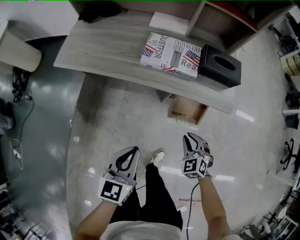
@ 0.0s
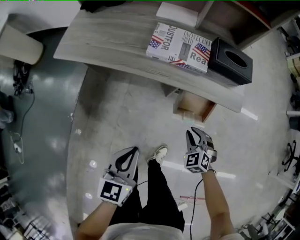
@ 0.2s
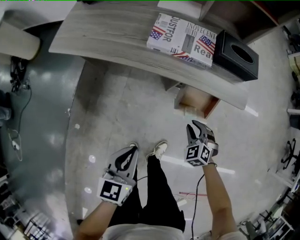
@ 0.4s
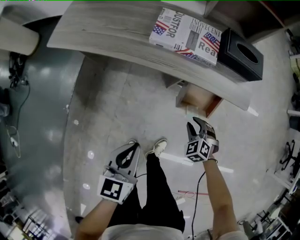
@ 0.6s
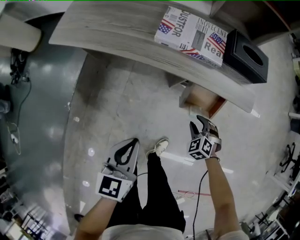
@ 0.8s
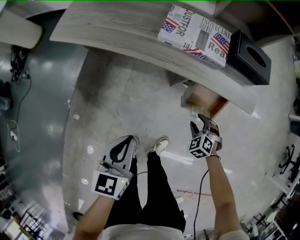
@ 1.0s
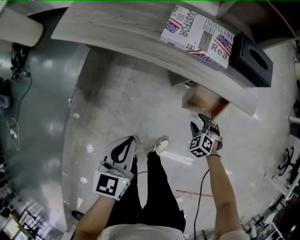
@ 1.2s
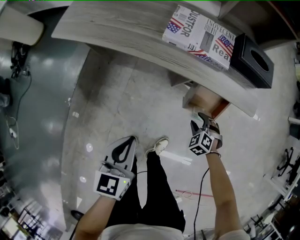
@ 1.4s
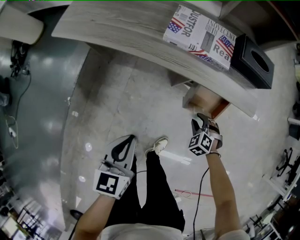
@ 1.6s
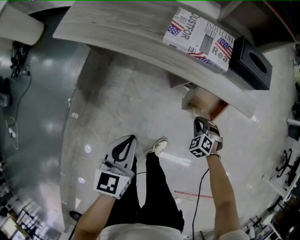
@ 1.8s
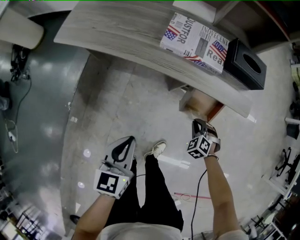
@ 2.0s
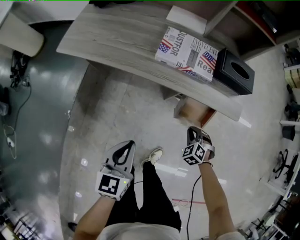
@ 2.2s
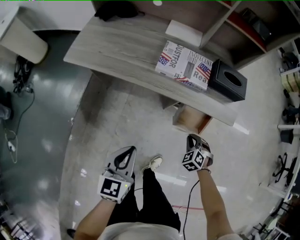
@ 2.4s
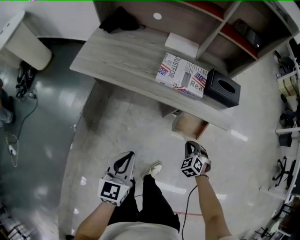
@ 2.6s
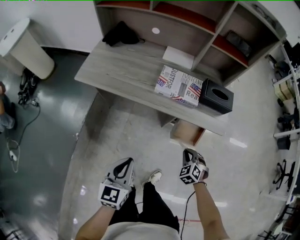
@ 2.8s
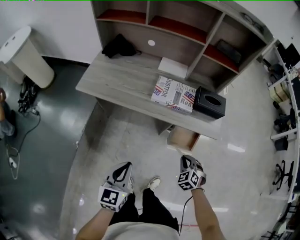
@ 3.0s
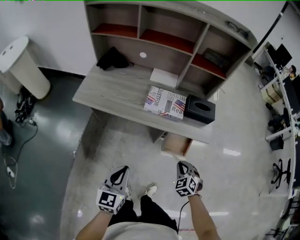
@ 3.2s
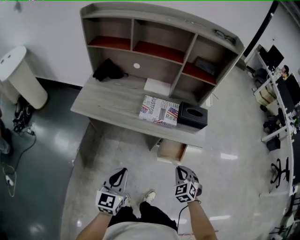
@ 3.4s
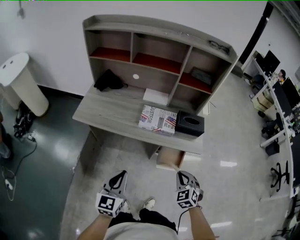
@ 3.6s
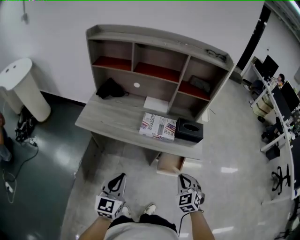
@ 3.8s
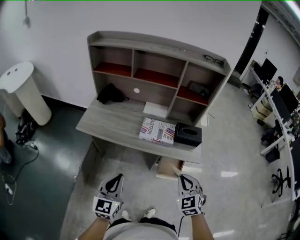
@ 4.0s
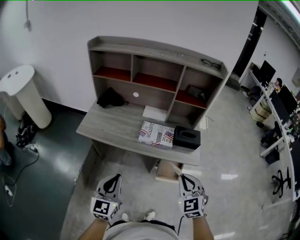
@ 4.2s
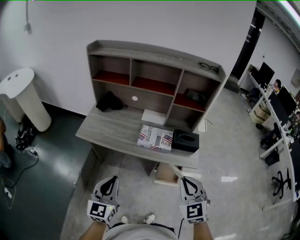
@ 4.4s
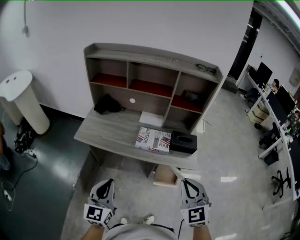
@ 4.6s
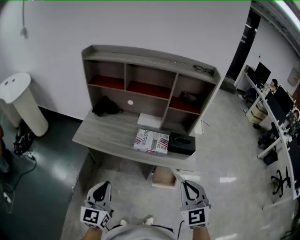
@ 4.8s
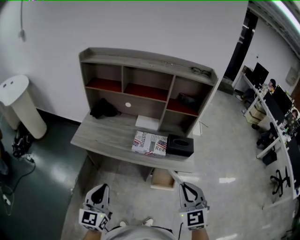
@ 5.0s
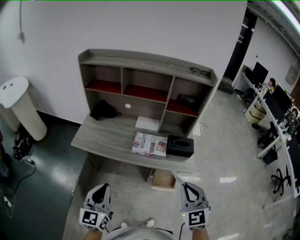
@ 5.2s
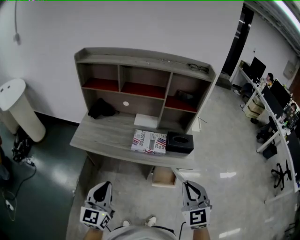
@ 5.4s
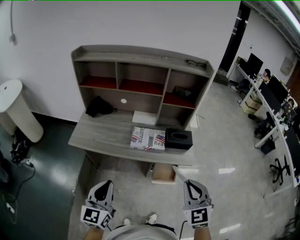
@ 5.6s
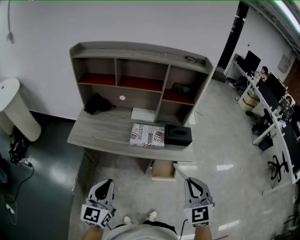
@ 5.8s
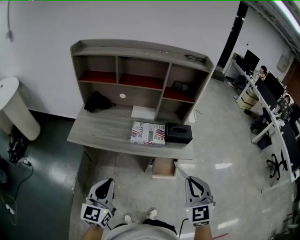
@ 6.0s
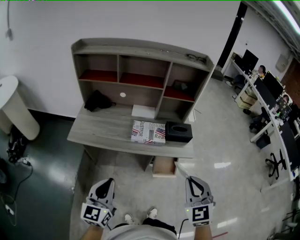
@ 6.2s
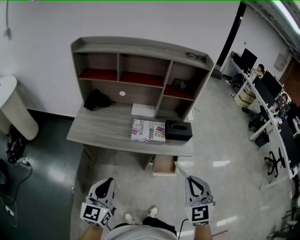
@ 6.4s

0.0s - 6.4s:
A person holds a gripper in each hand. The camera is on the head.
0.0s - 1.6s: The left gripper is displaced downward and to the left by roughly 10 cm. Meanwhile the right gripper travels downward by some 15 cm, and swivels some 20 degrees.
1.6s - 3.2s: The left gripper heads upward, covering approximately 15 cm; the right gripper is displaced upward by some 25 cm, changes its angle by about 30 degrees, and closes.
3.2s - 4.8s: The left gripper goes about 15 cm upward. The right gripper moves upward, about 30 cm, and tips its fingers upward by roughly 30 degrees.
4.8s - 6.4s: The grippers move only a little.

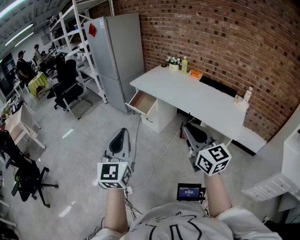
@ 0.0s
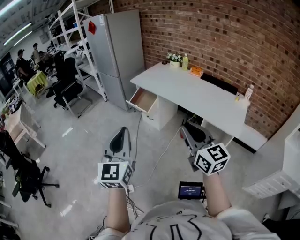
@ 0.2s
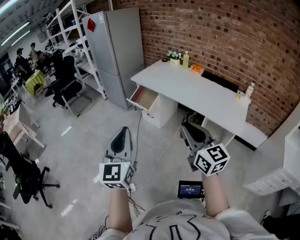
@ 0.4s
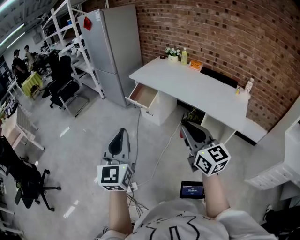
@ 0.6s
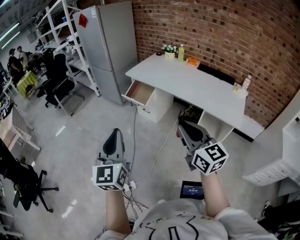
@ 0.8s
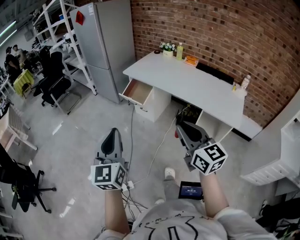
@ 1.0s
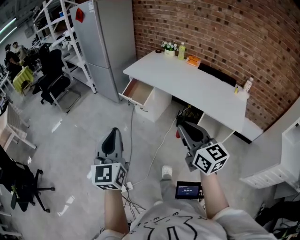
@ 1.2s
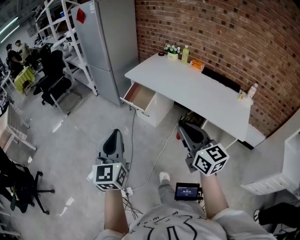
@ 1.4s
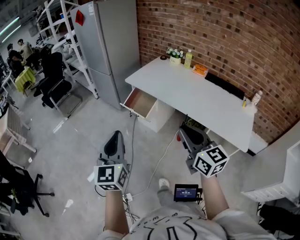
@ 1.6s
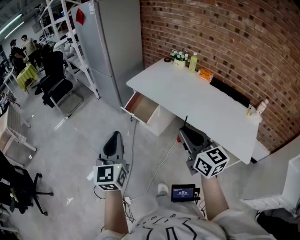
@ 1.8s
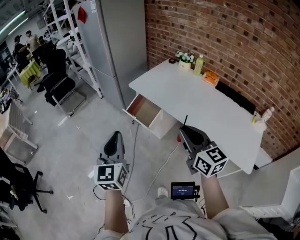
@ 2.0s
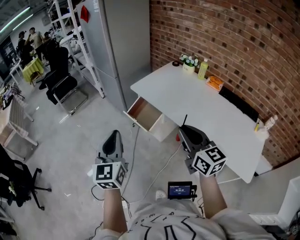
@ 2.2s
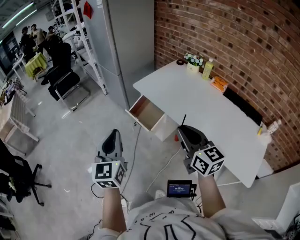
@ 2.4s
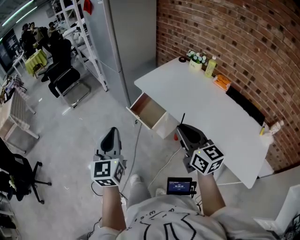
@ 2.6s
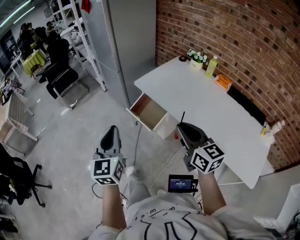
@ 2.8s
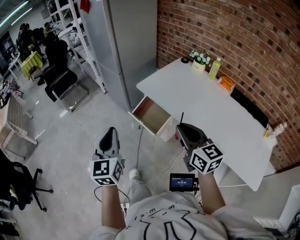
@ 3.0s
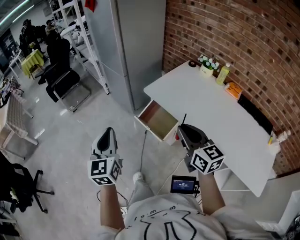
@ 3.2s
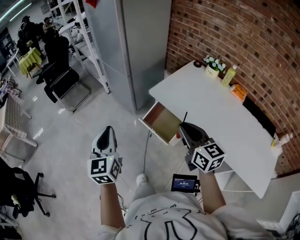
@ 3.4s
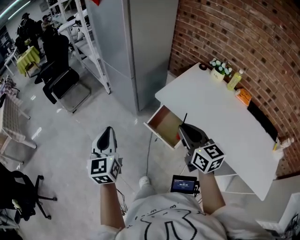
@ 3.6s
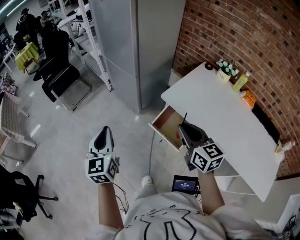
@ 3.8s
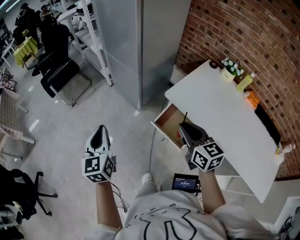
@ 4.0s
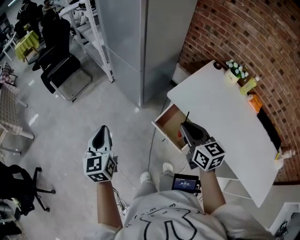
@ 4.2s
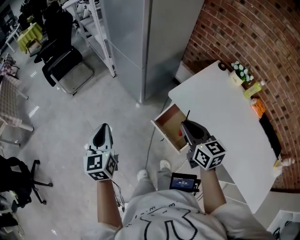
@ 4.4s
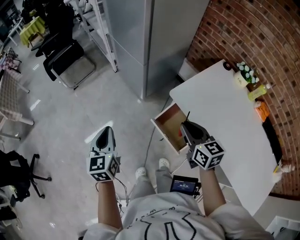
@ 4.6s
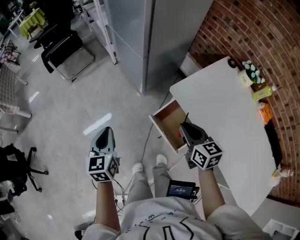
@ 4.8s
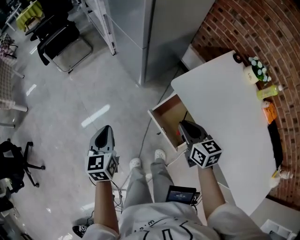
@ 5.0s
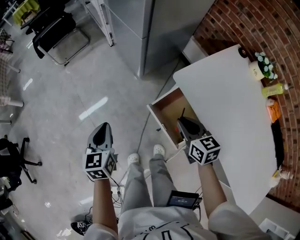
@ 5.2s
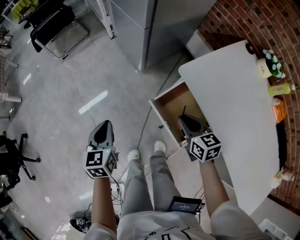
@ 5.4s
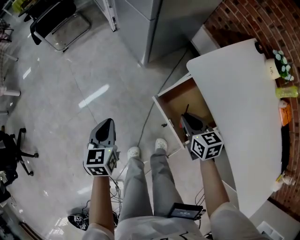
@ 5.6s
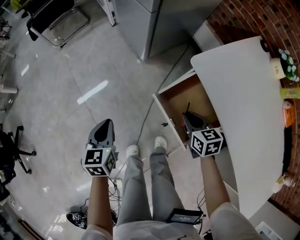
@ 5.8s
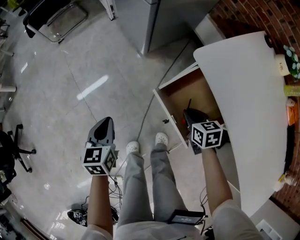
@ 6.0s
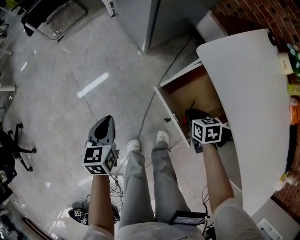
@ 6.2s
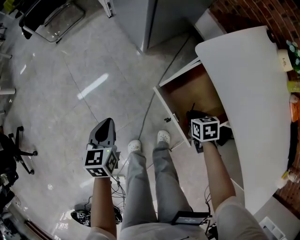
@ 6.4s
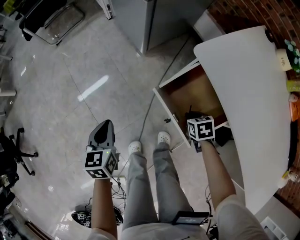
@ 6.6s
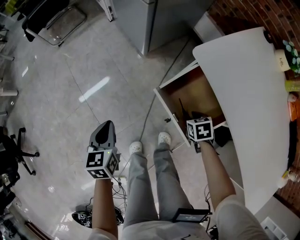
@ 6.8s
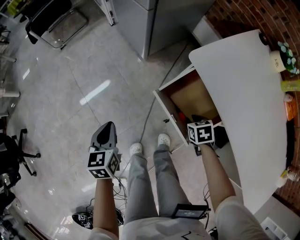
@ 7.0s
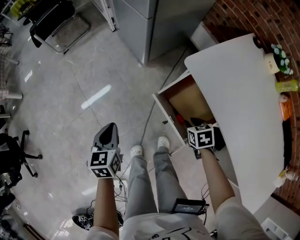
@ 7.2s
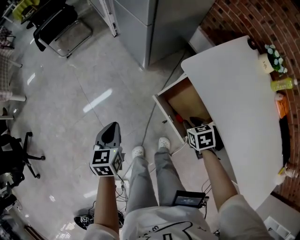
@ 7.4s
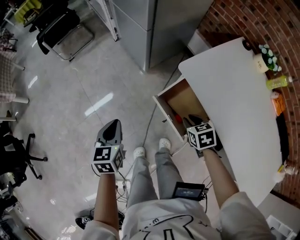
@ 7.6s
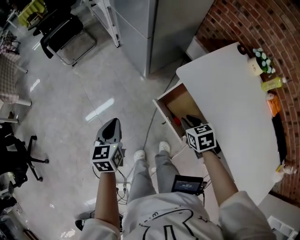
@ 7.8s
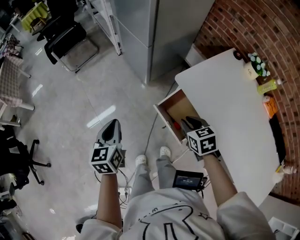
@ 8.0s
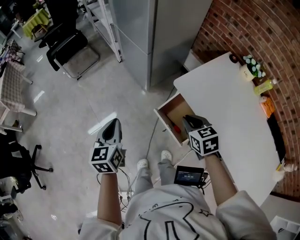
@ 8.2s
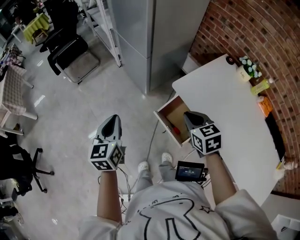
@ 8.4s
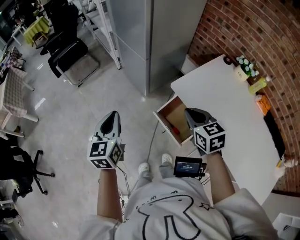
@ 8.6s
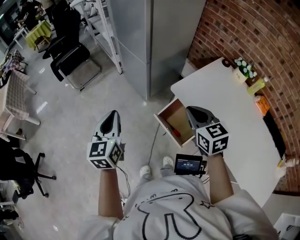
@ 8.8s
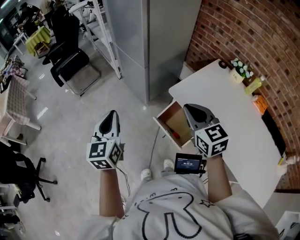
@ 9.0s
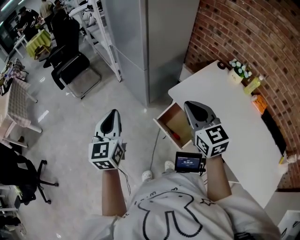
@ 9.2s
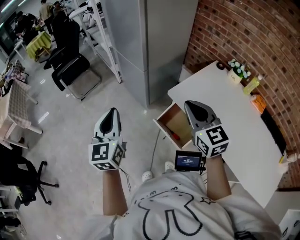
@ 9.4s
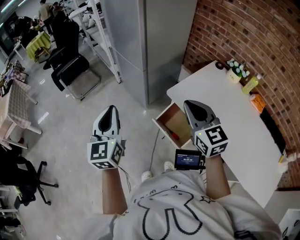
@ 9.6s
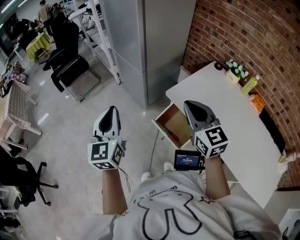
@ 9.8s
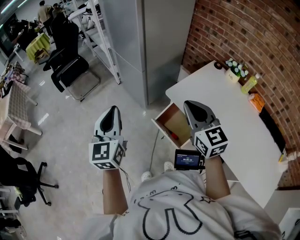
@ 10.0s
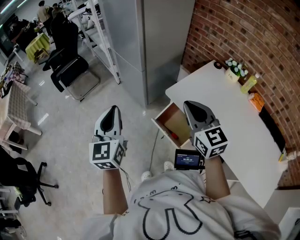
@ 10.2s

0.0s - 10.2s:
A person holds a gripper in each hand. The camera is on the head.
0.0s - 1.4s: The right gripper moves forward and to the left, approximately 15 cm; the left gripper travels forward, to the left and downward by about 15 cm.
1.4s - 3.0s: The grippers both shift forward by approximately 35 cm.
3.0s - 4.4s: The two grippers go roughly 30 cm forward and to the left.
4.4s - 5.8s: Both grippers move downward, roughly 30 cm. The right gripper turns by approximately 30 degrees. The left gripper changes its angle by approximately 20 degrees.
5.8s - 7.2s: The right gripper travels downward and back again, about 10 cm each way, and swivels about 20 degrees.
7.2s - 8.8s: Both grippers move upward, roughly 35 cm. The left gripper turns by about 30 degrees. Meanwhile the right gripper tilts its fingers some 40 degrees upward.
8.8s - 10.2s: The grippers both shift upward by approximately 10 cm.

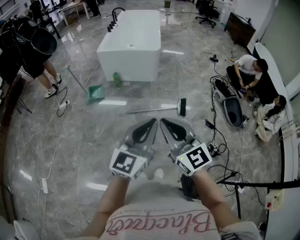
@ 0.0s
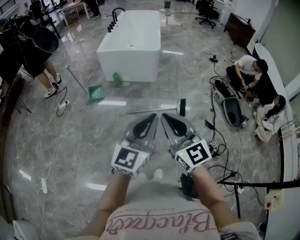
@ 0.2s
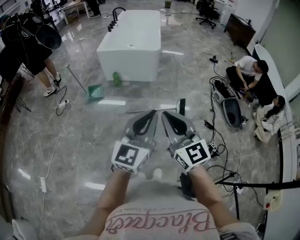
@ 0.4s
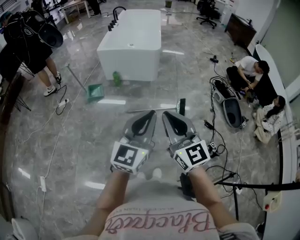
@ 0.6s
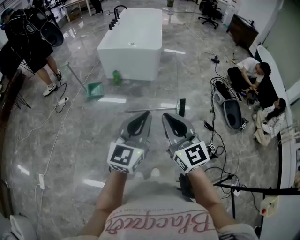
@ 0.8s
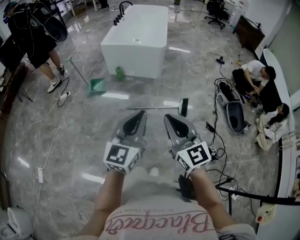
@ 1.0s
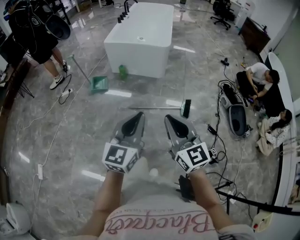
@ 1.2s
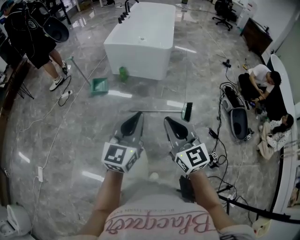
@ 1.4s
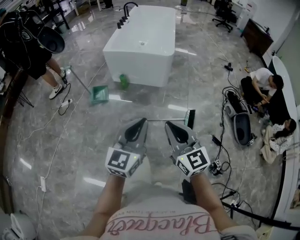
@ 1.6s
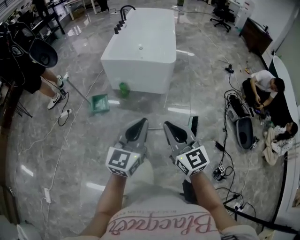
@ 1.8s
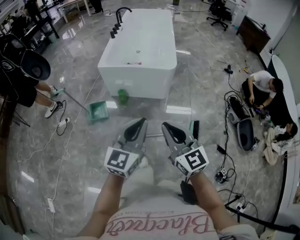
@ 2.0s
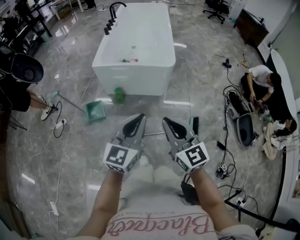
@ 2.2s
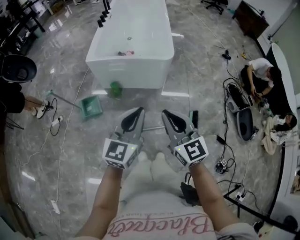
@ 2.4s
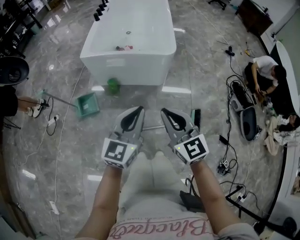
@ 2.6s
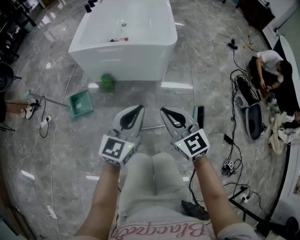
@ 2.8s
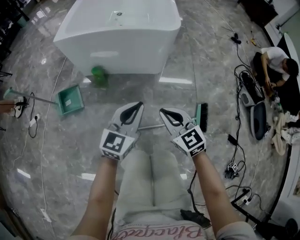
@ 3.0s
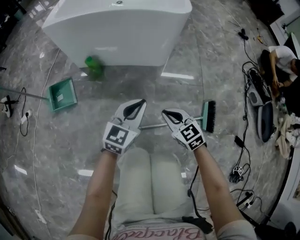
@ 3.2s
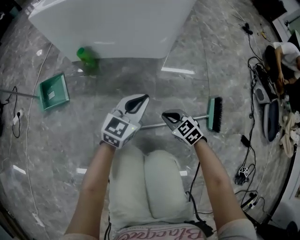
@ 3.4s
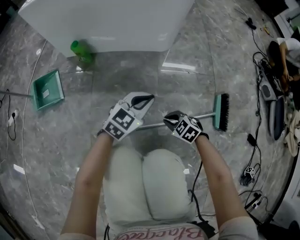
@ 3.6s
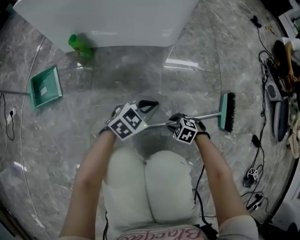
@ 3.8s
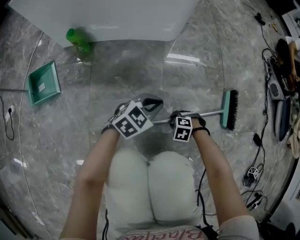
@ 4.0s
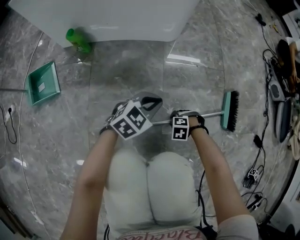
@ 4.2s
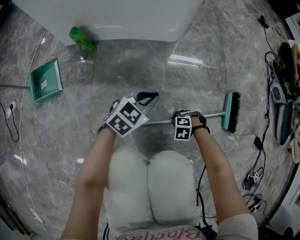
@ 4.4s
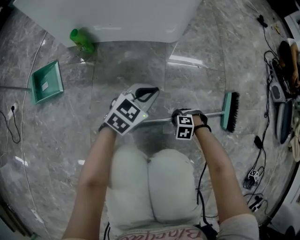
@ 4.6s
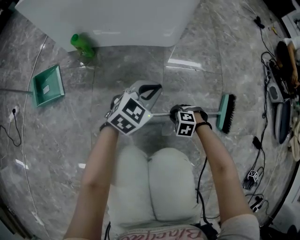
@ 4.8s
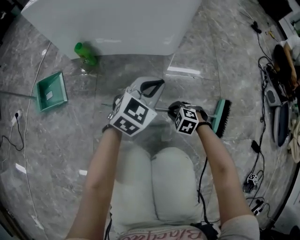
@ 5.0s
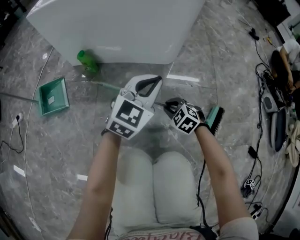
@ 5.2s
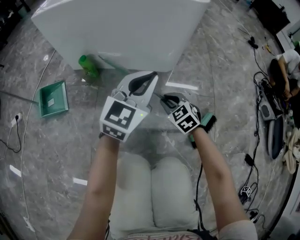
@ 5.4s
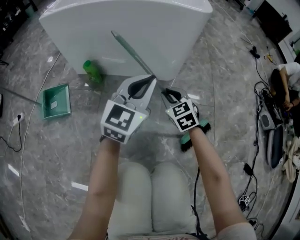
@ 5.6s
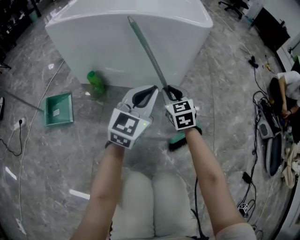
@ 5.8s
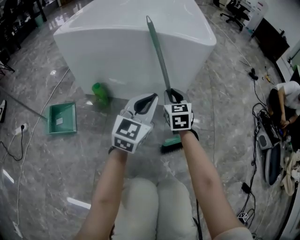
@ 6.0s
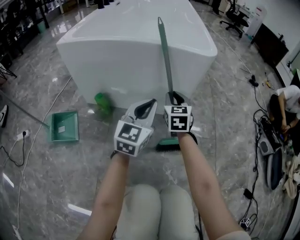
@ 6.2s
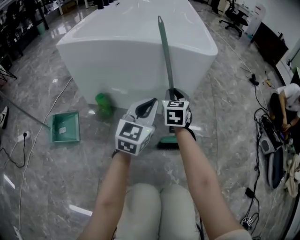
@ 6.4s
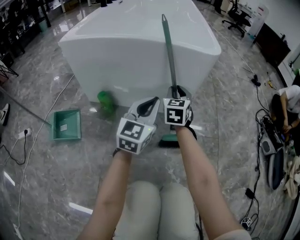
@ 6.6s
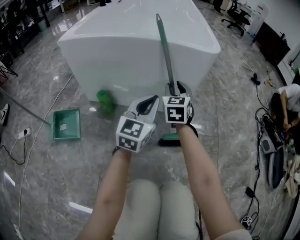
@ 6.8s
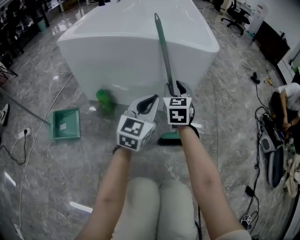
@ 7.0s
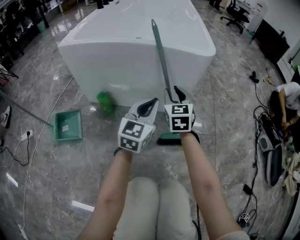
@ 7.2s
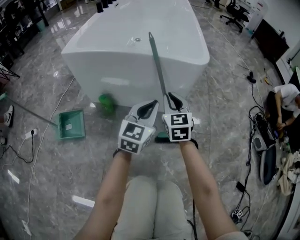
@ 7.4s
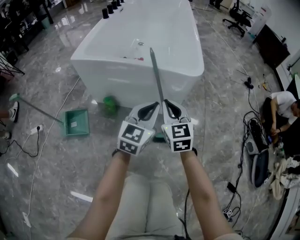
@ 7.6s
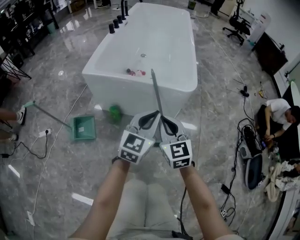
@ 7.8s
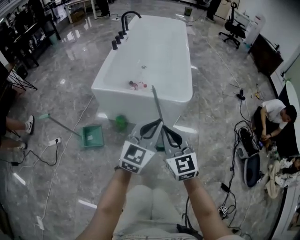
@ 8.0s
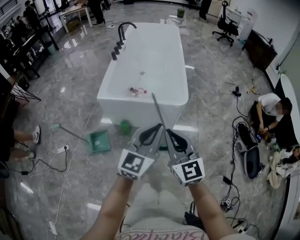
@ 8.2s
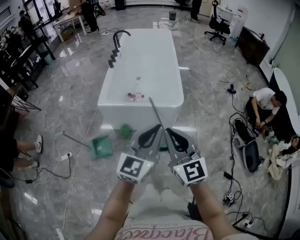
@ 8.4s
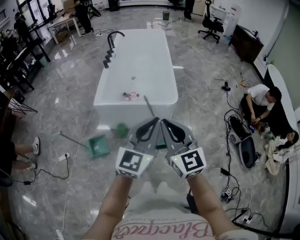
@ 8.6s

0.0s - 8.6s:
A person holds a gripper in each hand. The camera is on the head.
0.0s - 1.4s: The two grippers go approximately 10 cm forward.
1.4s - 2.8s: Both grippers travel together forward and downward, roughly 40 cm.
2.8s - 4.4s: The grippers both shift downward by approximately 60 cm. The right gripper angles its fingers downward, by some 70 degrees. Meanwhile the left gripper changes its angle by some 40 degrees.
4.4s - 5.8s: Both grippers travel together upward, about 25 cm. The right gripper tips its fingers upward by approximately 60 degrees. Meanwhile the left gripper changes its angle by some 40 degrees.
5.8s - 7.2s: The left gripper changes place by approximately 5 cm, while the right gripper is displaced upward and forward by some 10 cm.
7.2s - 8.6s: The right gripper moves upward and backward, some 60 cm, turns by about 20 degrees, and closes its fingers. The left gripper is displaced upward by approximately 50 cm.
